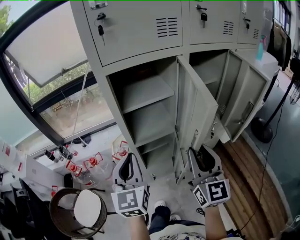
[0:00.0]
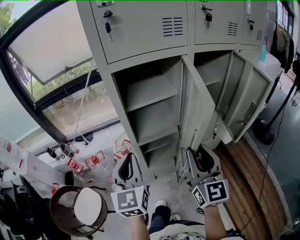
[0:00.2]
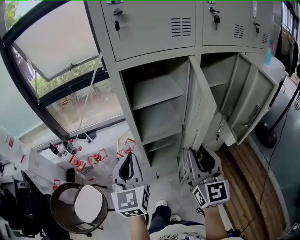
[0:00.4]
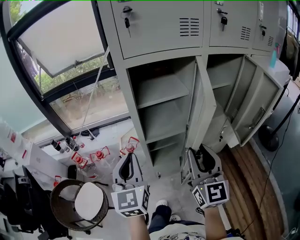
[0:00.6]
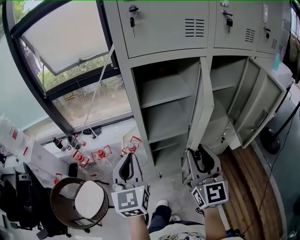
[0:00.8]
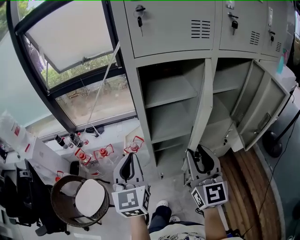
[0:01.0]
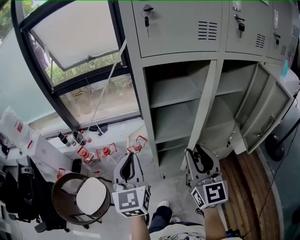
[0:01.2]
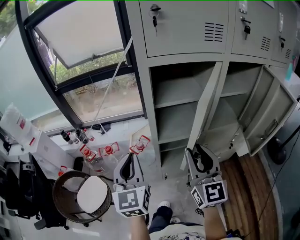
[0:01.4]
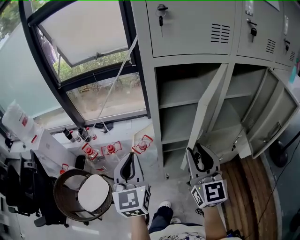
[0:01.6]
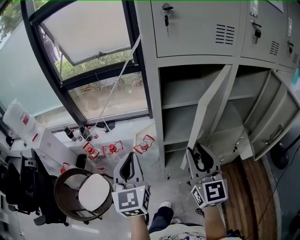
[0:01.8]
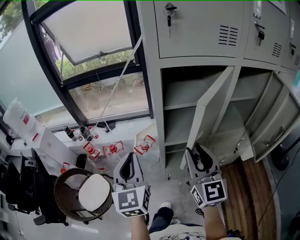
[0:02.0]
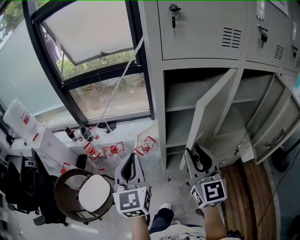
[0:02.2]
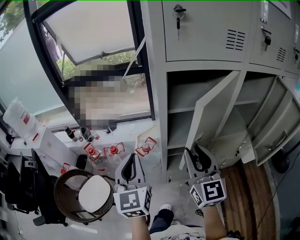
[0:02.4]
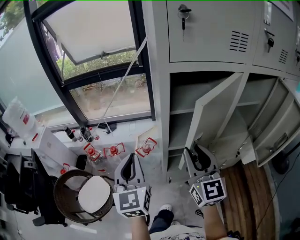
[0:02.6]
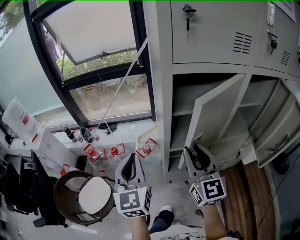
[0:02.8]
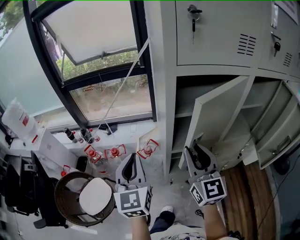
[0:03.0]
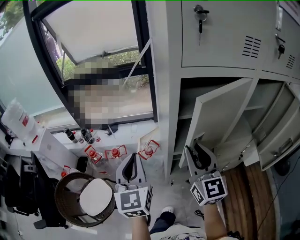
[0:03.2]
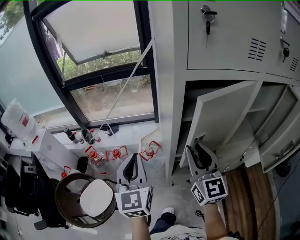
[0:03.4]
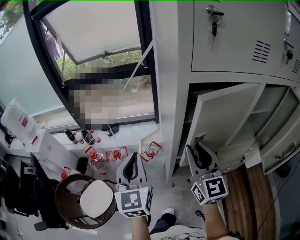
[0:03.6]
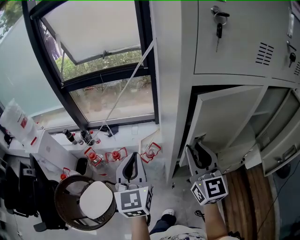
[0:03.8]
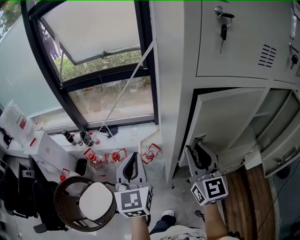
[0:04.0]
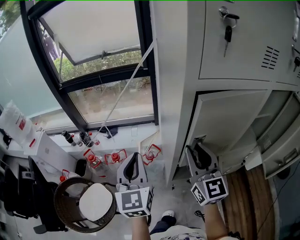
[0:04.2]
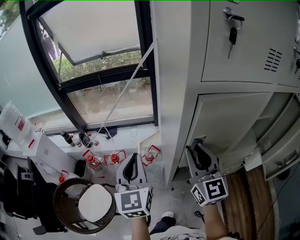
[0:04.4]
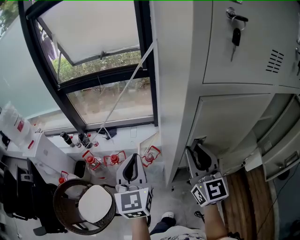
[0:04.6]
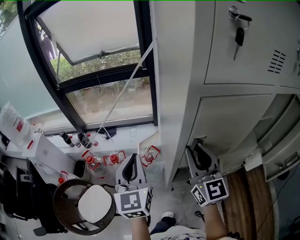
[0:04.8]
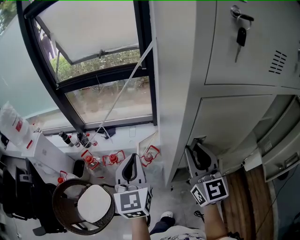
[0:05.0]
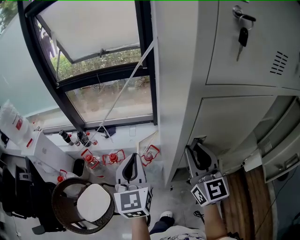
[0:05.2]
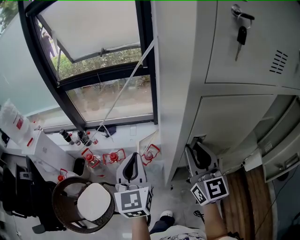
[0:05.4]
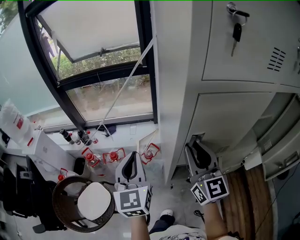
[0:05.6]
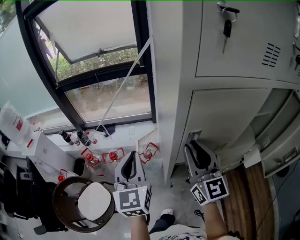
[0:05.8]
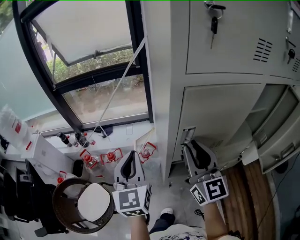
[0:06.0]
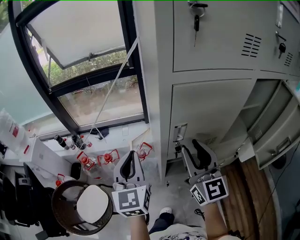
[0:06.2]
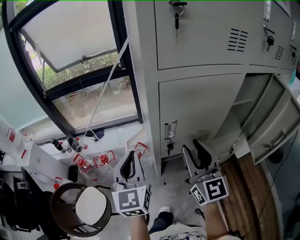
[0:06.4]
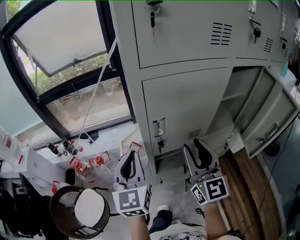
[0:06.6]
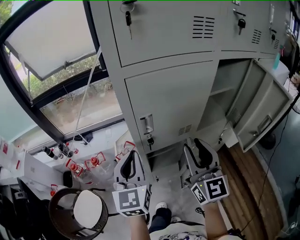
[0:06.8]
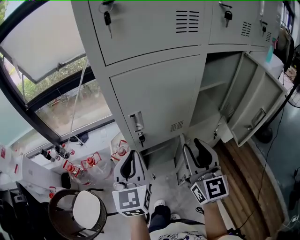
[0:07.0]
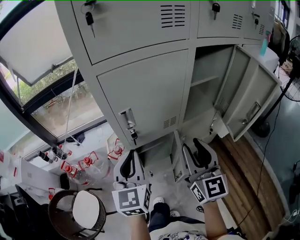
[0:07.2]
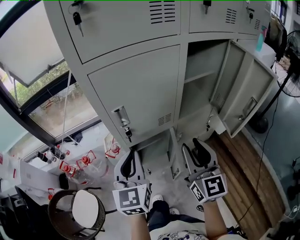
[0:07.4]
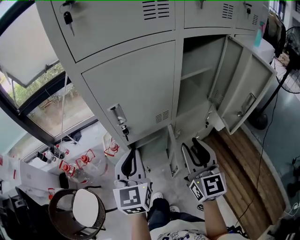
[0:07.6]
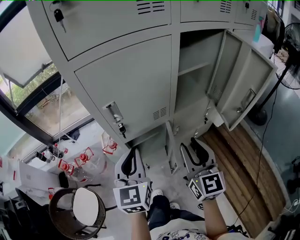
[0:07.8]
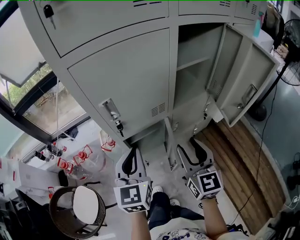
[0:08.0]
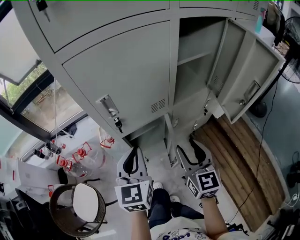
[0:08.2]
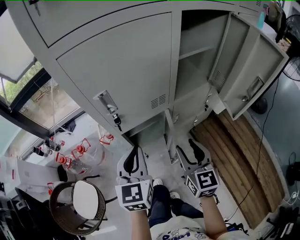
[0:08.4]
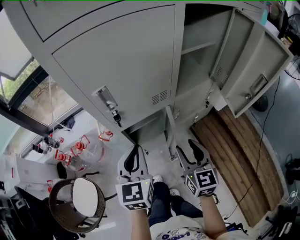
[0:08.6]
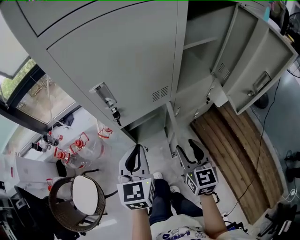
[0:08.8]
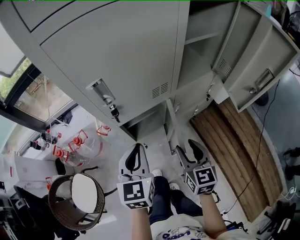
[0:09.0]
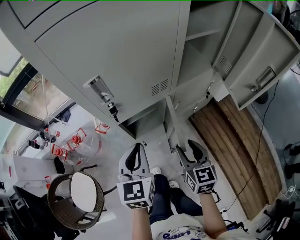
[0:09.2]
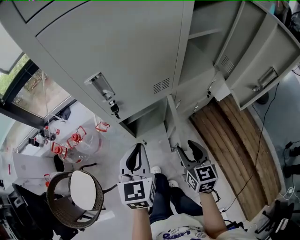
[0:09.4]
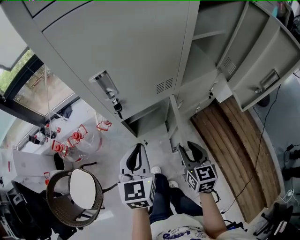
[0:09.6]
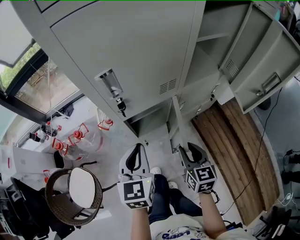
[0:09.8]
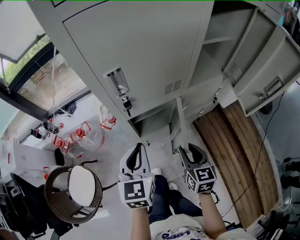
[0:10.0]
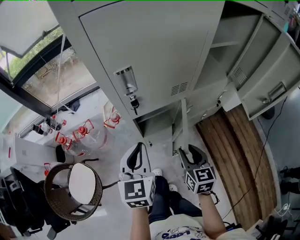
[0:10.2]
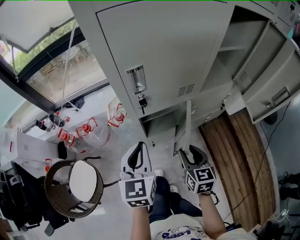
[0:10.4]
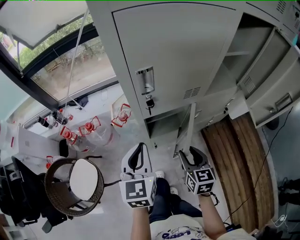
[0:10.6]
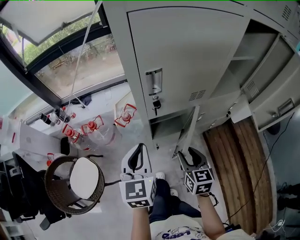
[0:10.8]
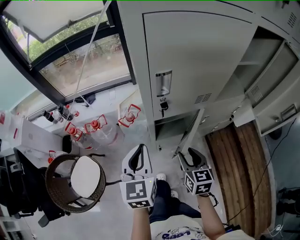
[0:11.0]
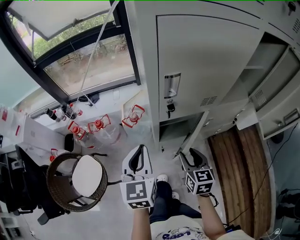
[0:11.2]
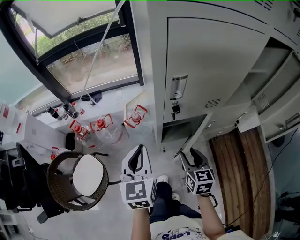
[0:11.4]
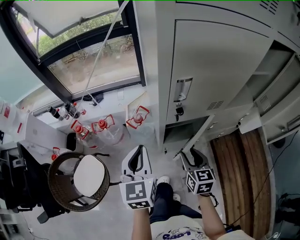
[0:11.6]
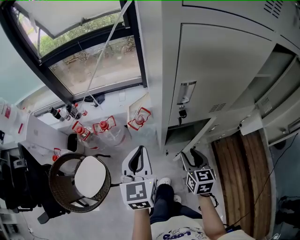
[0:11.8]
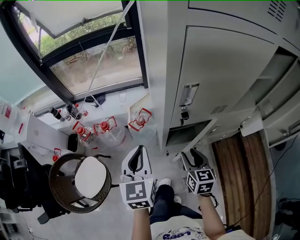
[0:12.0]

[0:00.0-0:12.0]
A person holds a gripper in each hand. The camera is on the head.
0.0 to 1.6 s: The two grippers go roughly 10 cm to the left.
1.6 to 3.0 s: Both grippers move forward, roughly 5 cm.
3.0 to 4.4 s: The two grippers go some 10 cm forward.
4.4 to 6.0 s: The grippers make only small movements.
6.0 to 7.6 s: The left gripper travels to the right by approximately 20 cm, and turns by approximately 20 degrees; the right gripper shifts roughly 25 cm to the right and backward, and rotates about 20 degrees.
7.6 to 9.0 s: The right gripper heads downward, covering approximately 20 cm, and rotates roughly 20 degrees. The left gripper travels downward by about 10 cm.
9.0 to 10.4 s: Both grippers travel together to the left, roughly 5 cm.
10.4 to 12.0 s: The right gripper goes approximately 10 cm to the left and forward. The left gripper is displaced to the left by approximately 10 cm.

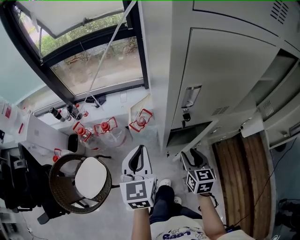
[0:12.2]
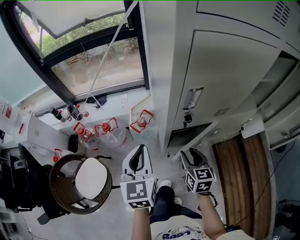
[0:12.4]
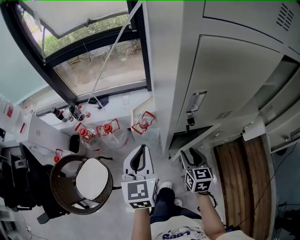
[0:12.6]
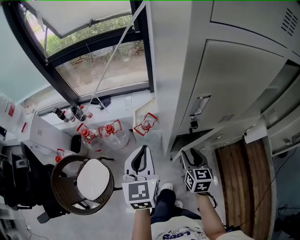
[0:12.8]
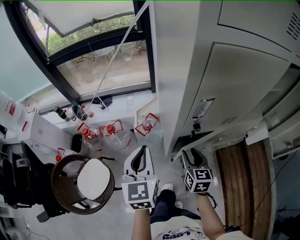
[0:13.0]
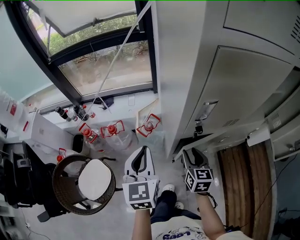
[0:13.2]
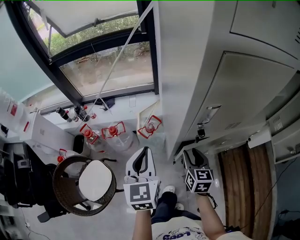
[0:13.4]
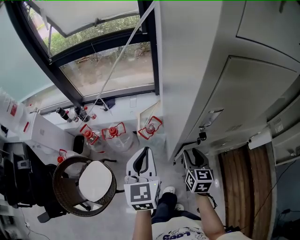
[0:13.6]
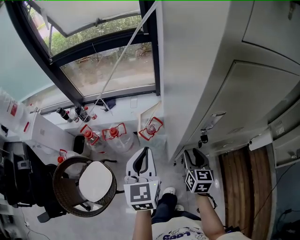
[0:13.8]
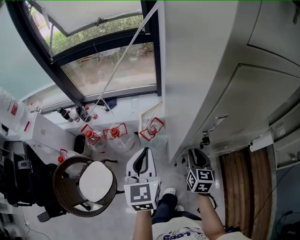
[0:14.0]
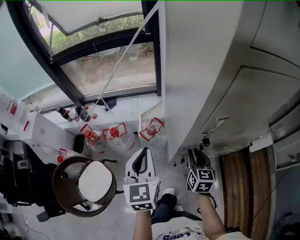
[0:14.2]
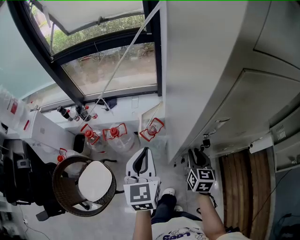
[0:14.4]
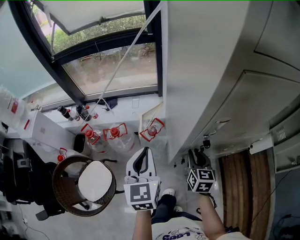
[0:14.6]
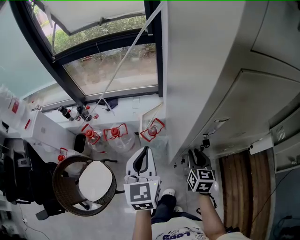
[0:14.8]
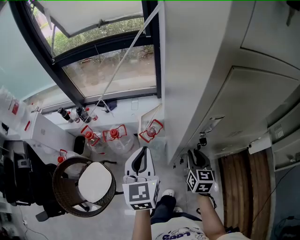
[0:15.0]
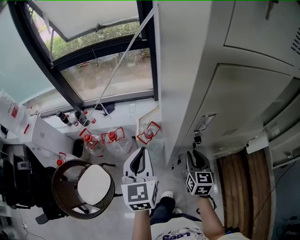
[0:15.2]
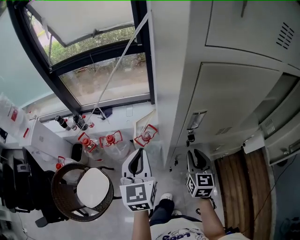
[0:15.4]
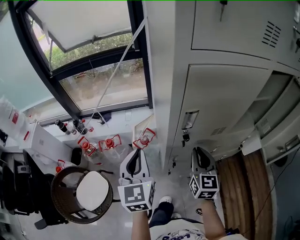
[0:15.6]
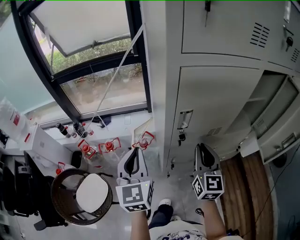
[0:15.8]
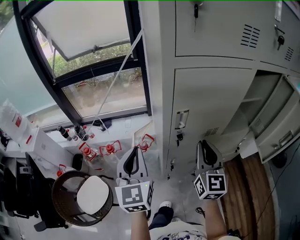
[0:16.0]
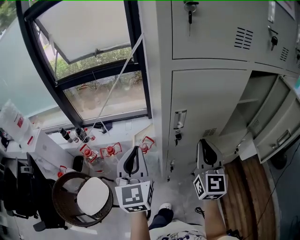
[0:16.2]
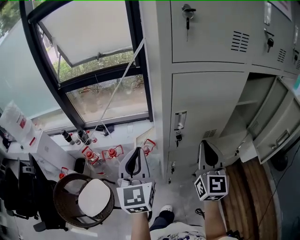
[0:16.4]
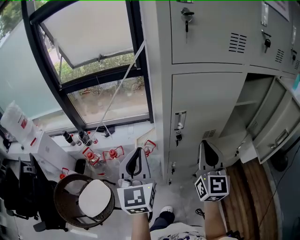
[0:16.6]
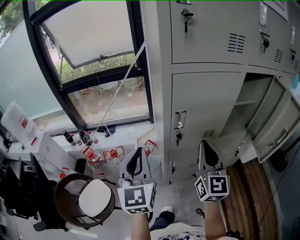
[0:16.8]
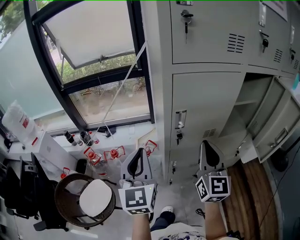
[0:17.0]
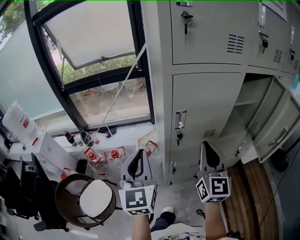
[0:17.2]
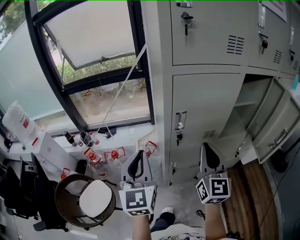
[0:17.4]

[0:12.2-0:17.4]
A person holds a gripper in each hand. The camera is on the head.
12.2 to 14.0 s: Both grippers travel together forward, approximately 10 cm.
14.0 to 15.6 s: The left gripper is displaced upward by approximately 5 cm; the right gripper heads upward and to the right, covering about 15 cm.
15.6 to 17.4 s: The grippers both shift upward and backward by approximately 15 cm.

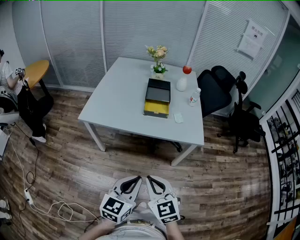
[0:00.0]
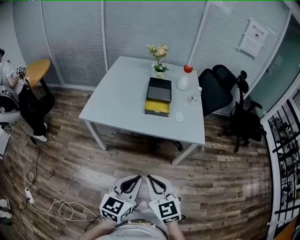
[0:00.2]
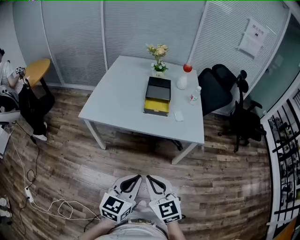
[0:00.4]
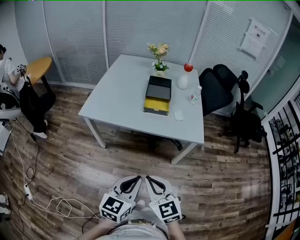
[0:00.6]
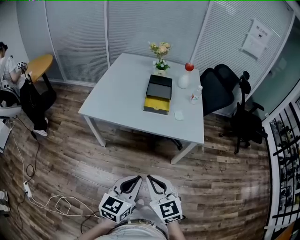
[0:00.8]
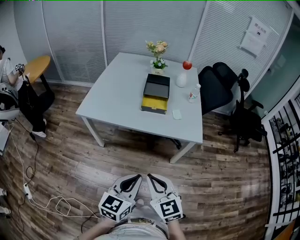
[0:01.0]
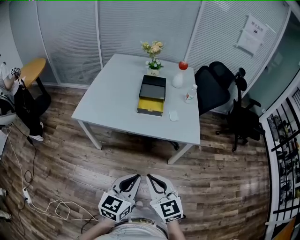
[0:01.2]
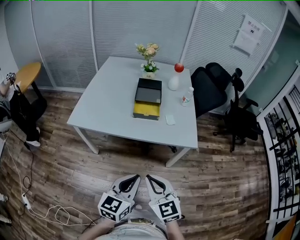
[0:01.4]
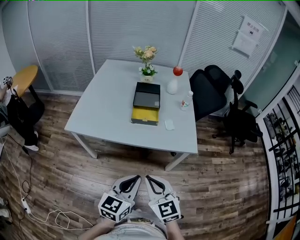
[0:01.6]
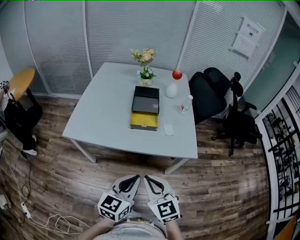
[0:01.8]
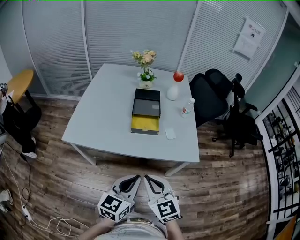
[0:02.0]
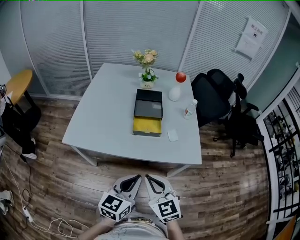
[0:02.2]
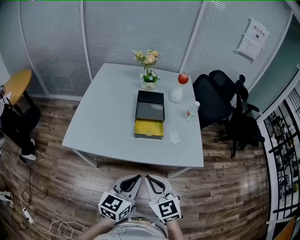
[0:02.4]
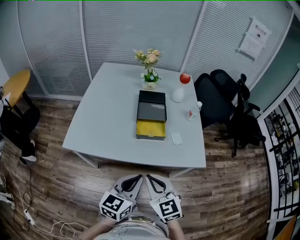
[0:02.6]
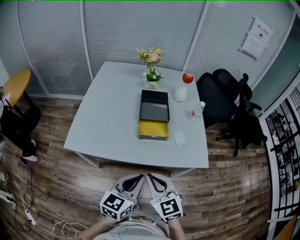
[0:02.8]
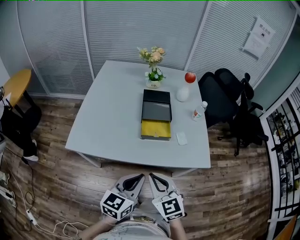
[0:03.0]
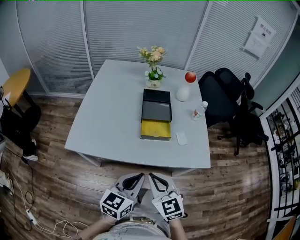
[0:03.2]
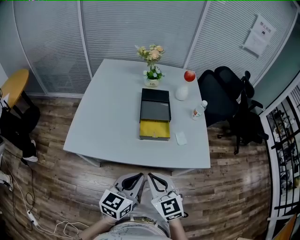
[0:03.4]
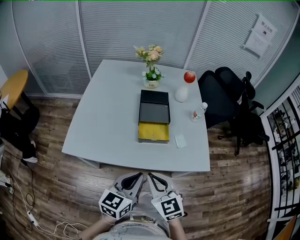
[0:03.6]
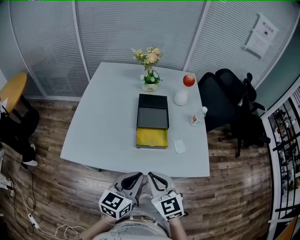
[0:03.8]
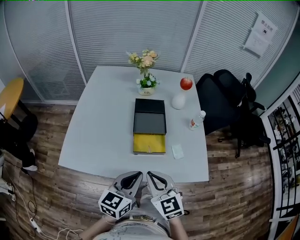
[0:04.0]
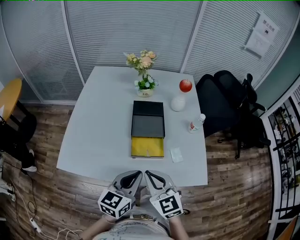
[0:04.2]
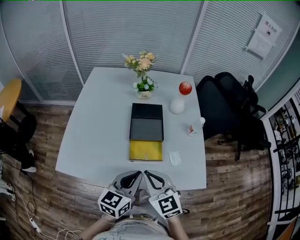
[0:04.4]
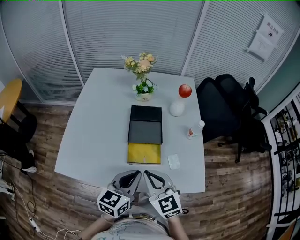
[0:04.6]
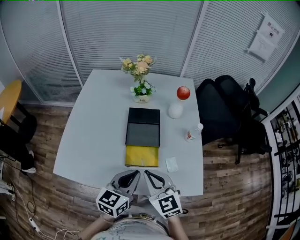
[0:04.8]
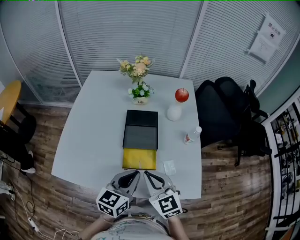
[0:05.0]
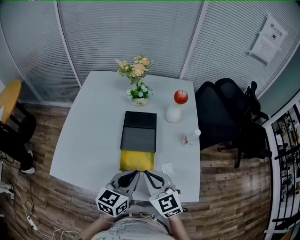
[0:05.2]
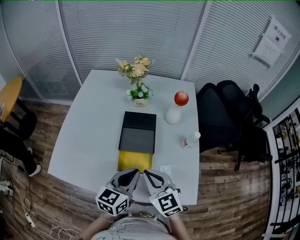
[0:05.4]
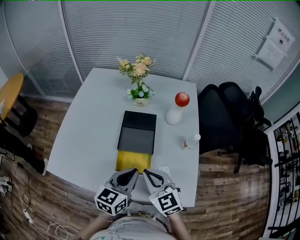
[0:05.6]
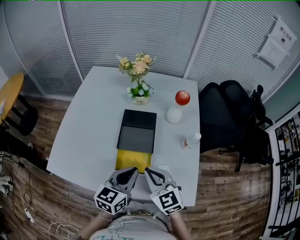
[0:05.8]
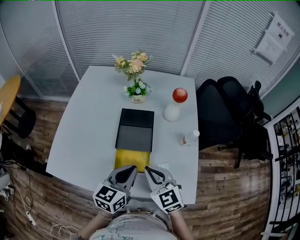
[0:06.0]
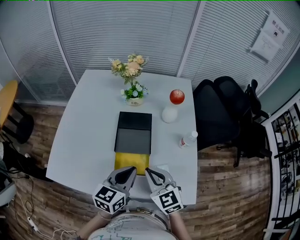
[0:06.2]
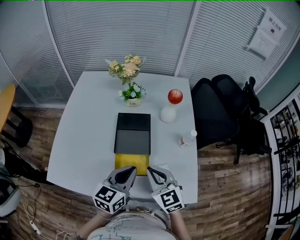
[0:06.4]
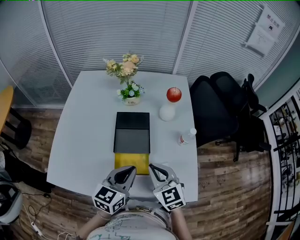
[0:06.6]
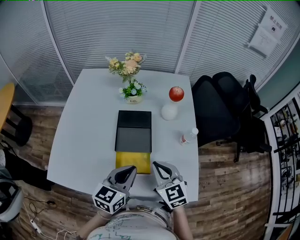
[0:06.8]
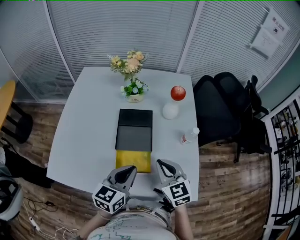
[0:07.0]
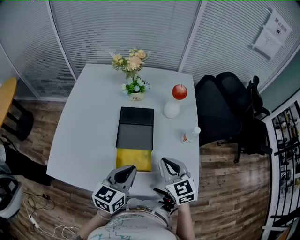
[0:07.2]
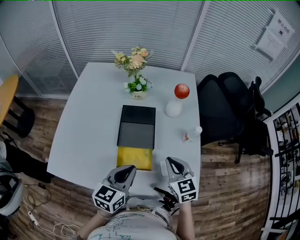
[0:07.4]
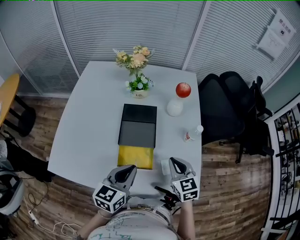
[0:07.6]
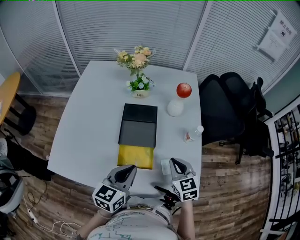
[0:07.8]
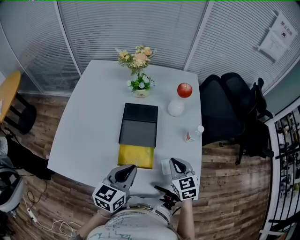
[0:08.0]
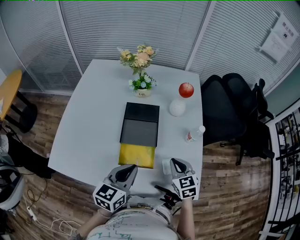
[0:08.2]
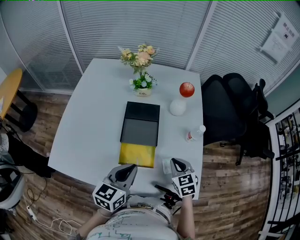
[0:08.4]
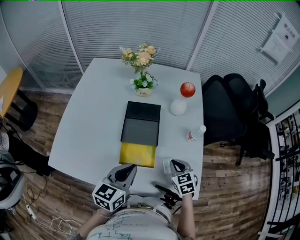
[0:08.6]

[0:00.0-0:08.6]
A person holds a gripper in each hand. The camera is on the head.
0.0 to 1.4 s: The left gripper travels forward and to the right by approximately 10 cm, while the right gripper travels to the right and forward by about 10 cm.
1.4 to 2.8 s: The left gripper moves forward, approximately 20 cm; the right gripper heads forward and to the left, covering about 20 cm.
2.8 to 4.4 s: The grippers both shift forward by some 20 cm.
4.4 to 5.8 s: Both grippers move forward and to the right, roughly 15 cm.
5.8 to 7.2 s: The right gripper is displaced to the right by some 5 cm.
7.2 to 8.6 s: The right gripper moves downward, roughly 10 cm.
